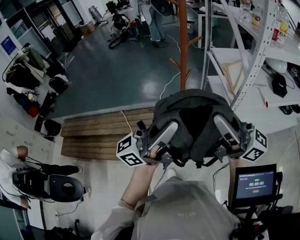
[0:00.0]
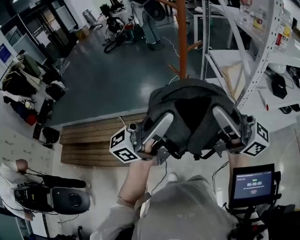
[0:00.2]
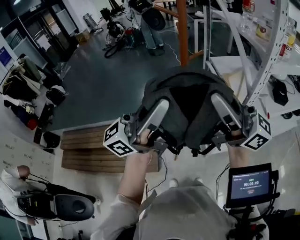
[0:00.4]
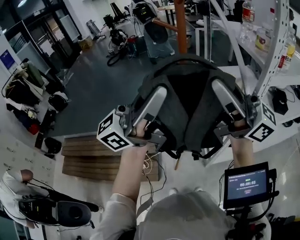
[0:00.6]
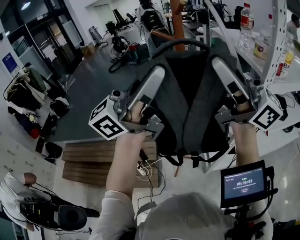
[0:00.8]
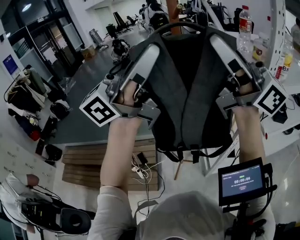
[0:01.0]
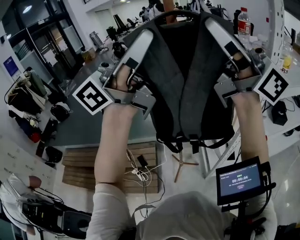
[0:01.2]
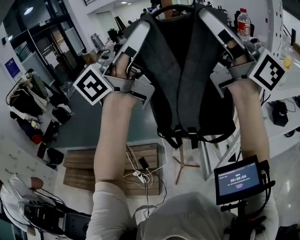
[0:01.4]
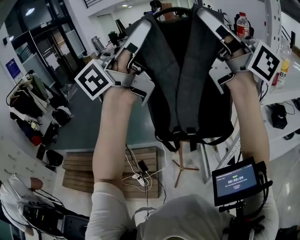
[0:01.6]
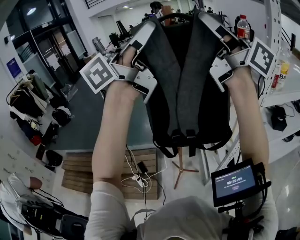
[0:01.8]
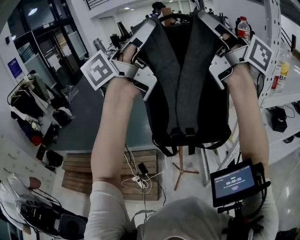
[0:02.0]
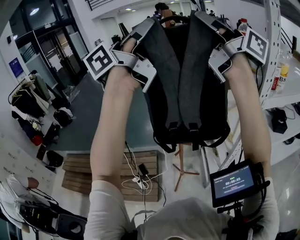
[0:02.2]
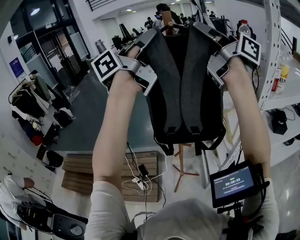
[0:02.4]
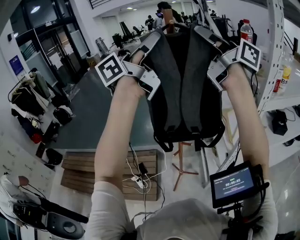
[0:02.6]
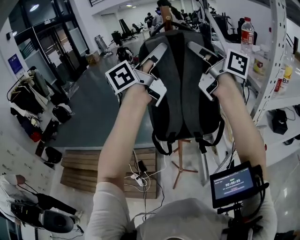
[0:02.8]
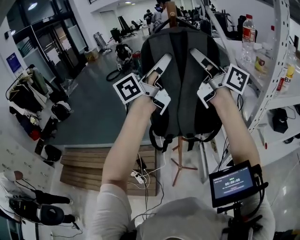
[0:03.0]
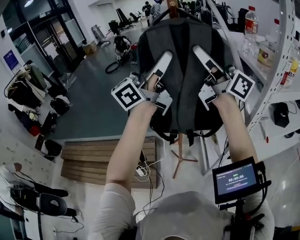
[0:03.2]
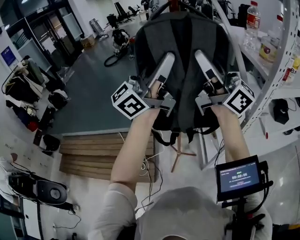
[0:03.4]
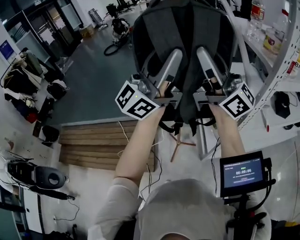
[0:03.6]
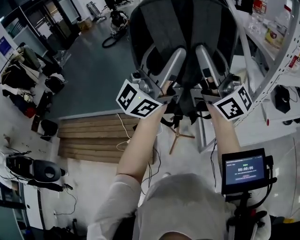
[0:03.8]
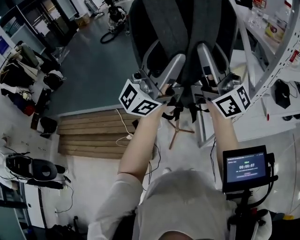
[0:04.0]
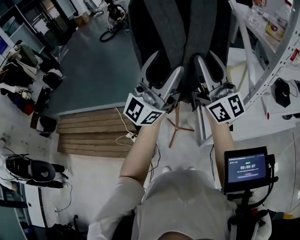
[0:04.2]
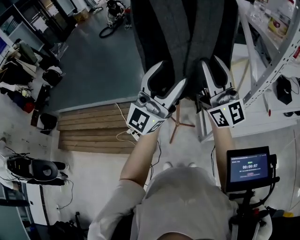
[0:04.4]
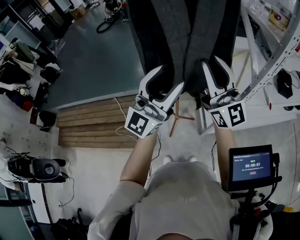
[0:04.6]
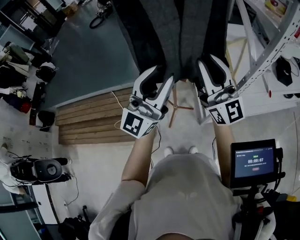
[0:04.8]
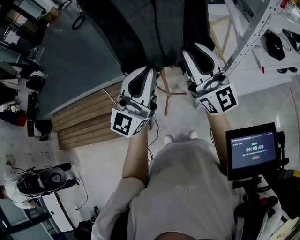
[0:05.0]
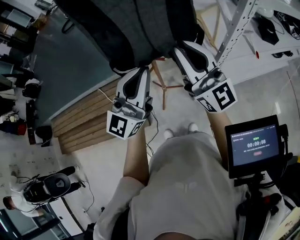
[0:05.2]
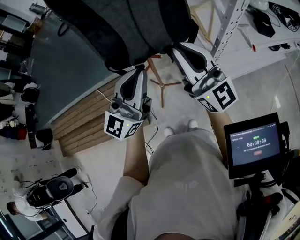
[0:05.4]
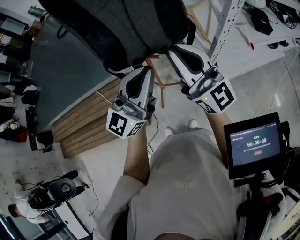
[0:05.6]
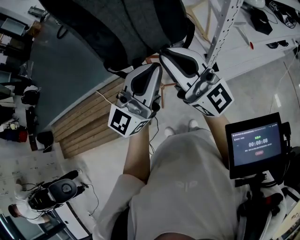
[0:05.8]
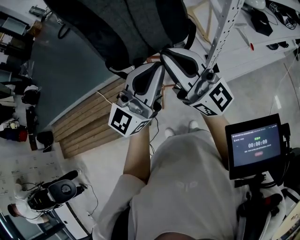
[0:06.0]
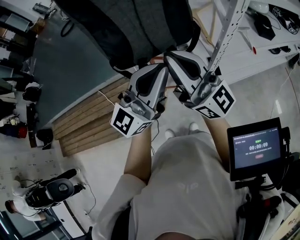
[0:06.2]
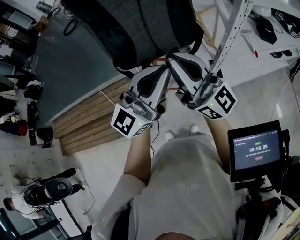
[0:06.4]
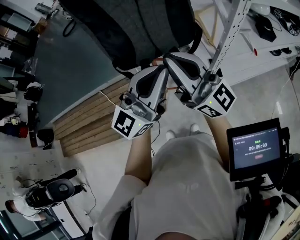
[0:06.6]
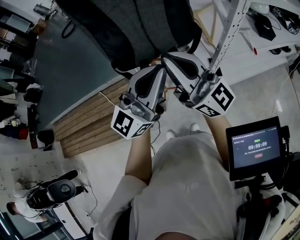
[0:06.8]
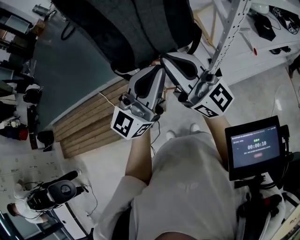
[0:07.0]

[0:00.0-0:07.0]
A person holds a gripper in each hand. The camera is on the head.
0:00.0 to 0:01.4: Both grippers travel together upward, roughly 30 cm. The right gripper swivels roughly 20 degrees.
0:01.4 to 0:02.8: The left gripper ends up roughly 15 cm from where it was, and swivels roughly 20 degrees. The right gripper moves some 20 cm, and swivels approximately 40 degrees.
0:02.8 to 0:04.2: Both grippers move downward and backward, some 20 cm. The left gripper turns by roughly 40 degrees, and opens its fingers. The right gripper rotates around the line of its fingers by approximately 40 degrees, counterclockwise from behind.
0:04.2 to 0:05.6: Both grippers move downward and backward, approximately 15 cm. The left gripper rotates about 20 degrees, and closes up.
0:05.6 to 0:07.0: The grippers stay close to where they were, moving slightly.

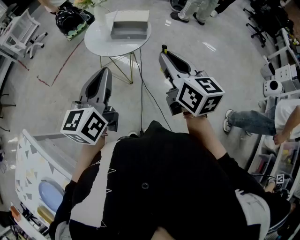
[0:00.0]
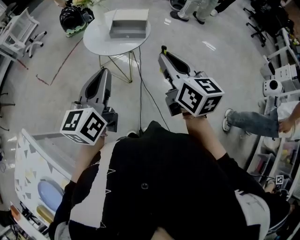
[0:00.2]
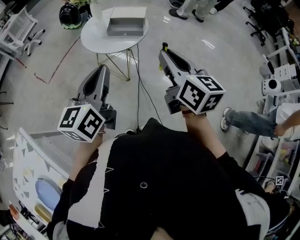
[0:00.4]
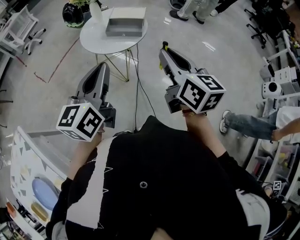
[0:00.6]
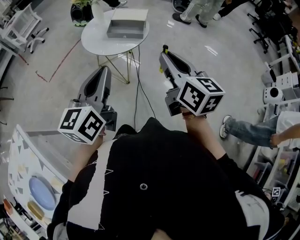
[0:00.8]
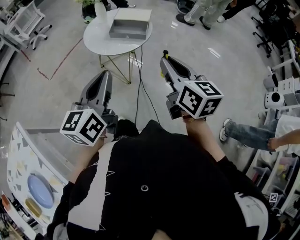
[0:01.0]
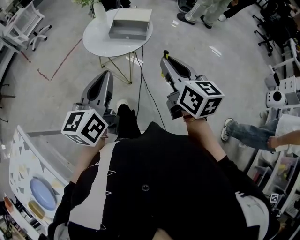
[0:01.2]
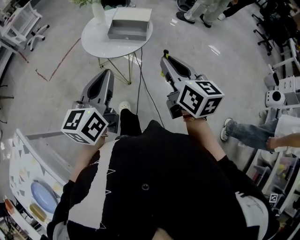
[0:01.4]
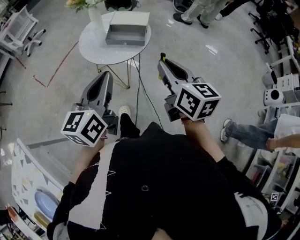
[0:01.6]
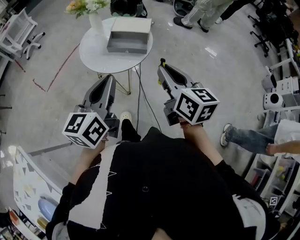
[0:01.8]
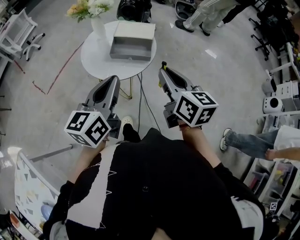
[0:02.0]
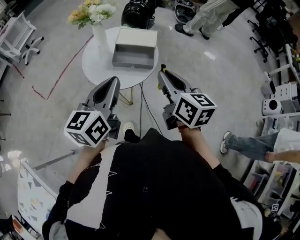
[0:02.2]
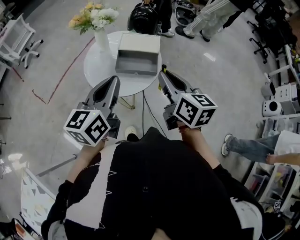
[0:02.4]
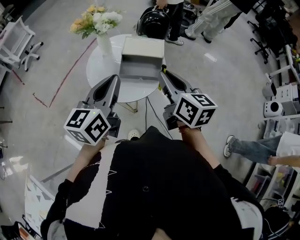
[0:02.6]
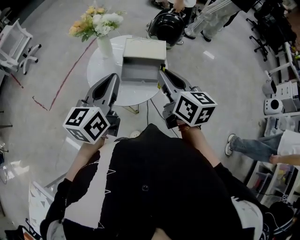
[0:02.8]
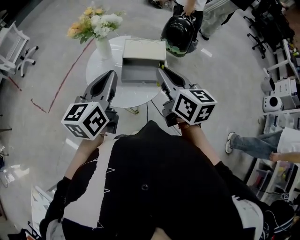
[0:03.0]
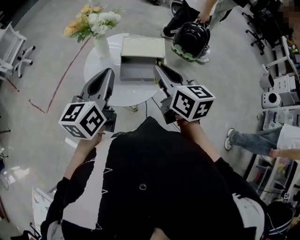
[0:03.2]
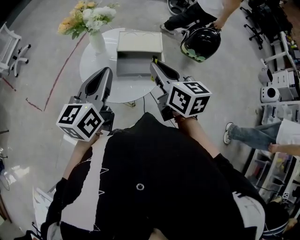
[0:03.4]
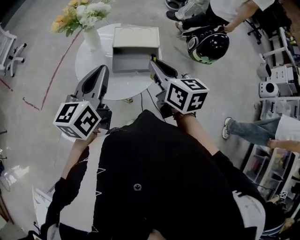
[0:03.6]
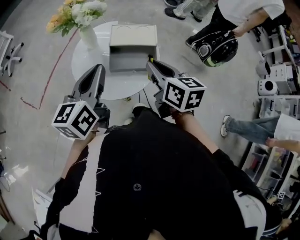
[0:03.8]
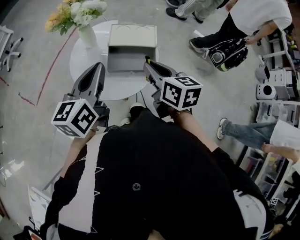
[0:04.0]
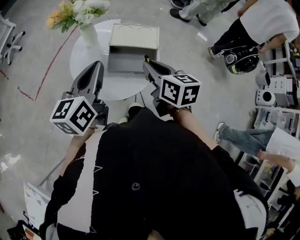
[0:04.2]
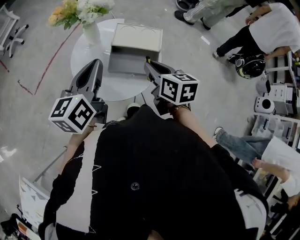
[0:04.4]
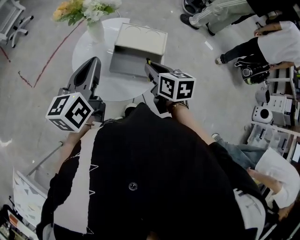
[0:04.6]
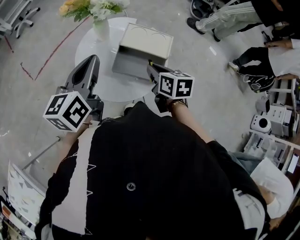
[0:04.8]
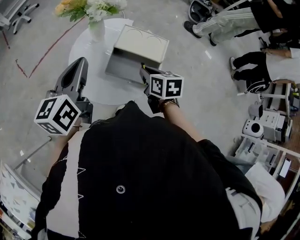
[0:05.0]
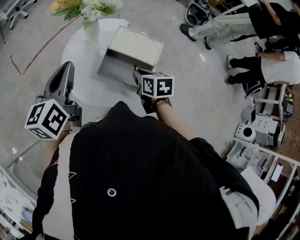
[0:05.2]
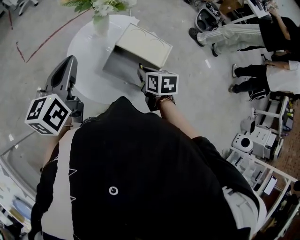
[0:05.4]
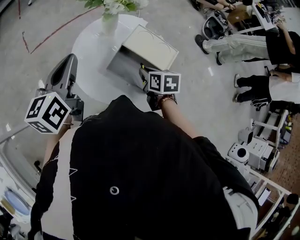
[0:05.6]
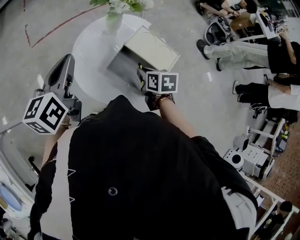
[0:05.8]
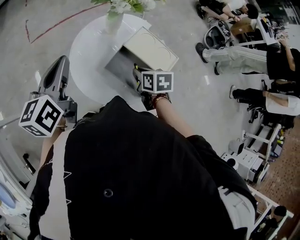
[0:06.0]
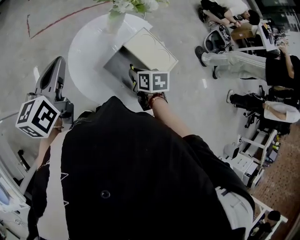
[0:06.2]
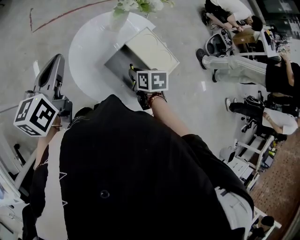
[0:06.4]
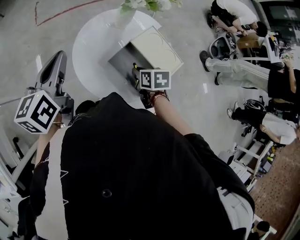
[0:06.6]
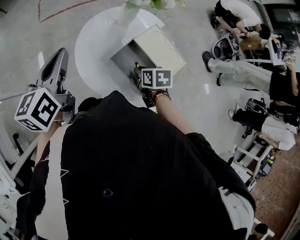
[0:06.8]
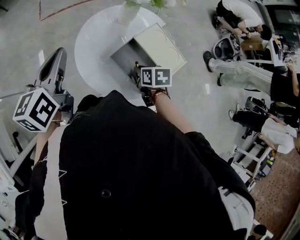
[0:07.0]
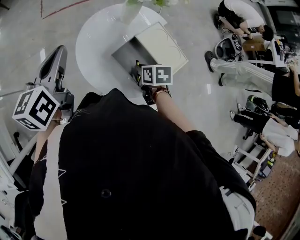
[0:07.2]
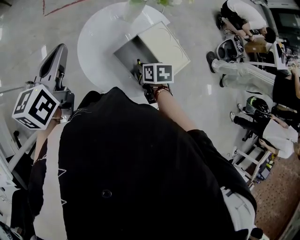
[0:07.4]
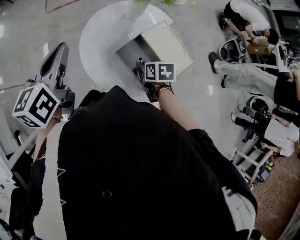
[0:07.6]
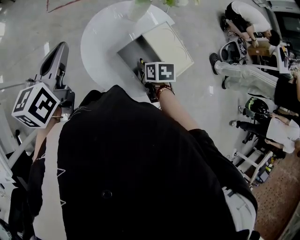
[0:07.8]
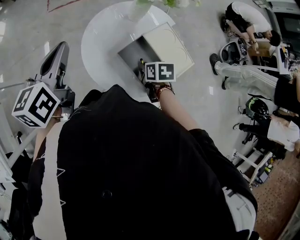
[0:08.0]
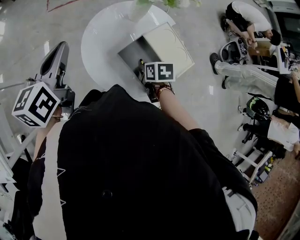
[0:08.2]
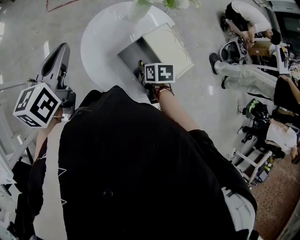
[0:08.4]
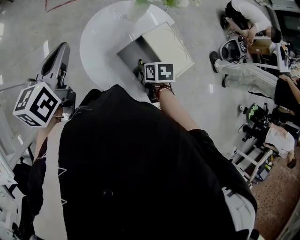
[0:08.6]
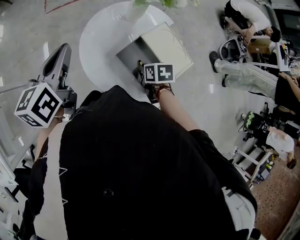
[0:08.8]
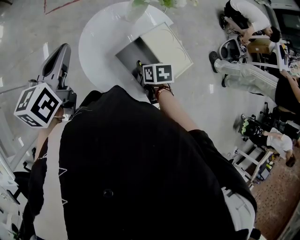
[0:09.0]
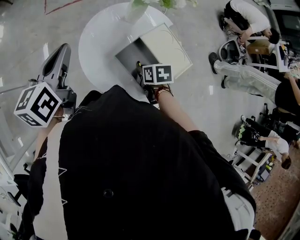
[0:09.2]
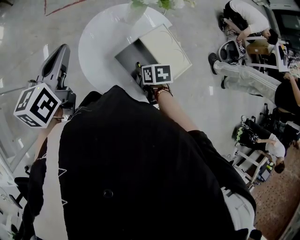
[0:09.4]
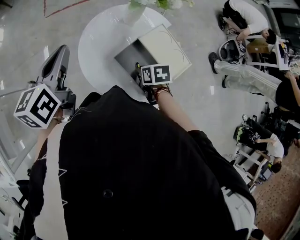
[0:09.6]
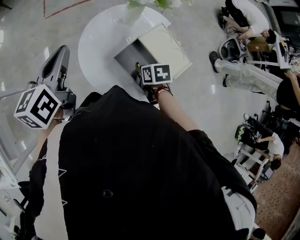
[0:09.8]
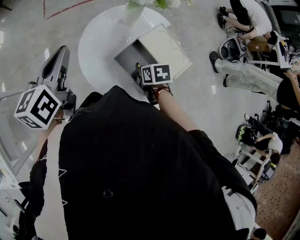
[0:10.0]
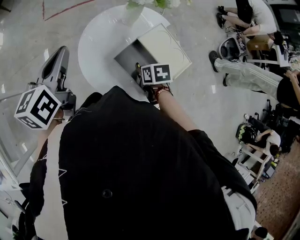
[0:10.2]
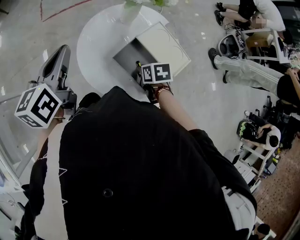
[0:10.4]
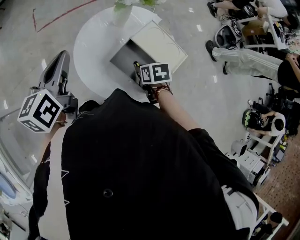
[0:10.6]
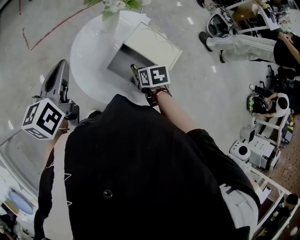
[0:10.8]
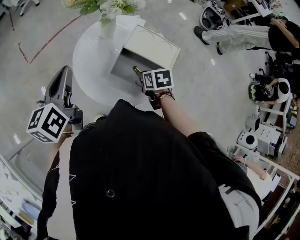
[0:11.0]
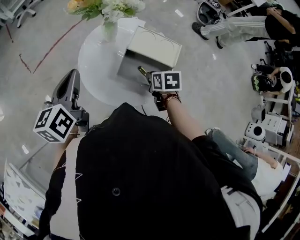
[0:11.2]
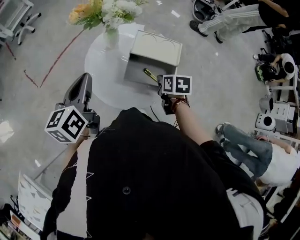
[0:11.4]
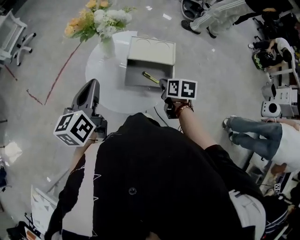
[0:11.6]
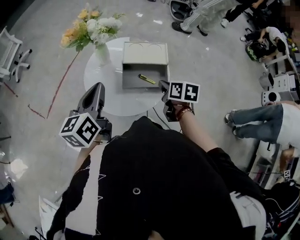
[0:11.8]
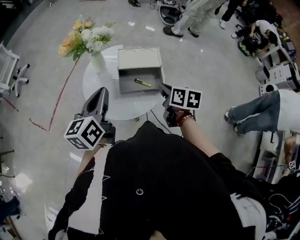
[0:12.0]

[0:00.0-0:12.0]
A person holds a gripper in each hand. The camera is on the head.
0:00.0 to 0:01.6: The right gripper moves forward and downward, about 10 cm, while the left gripper moves forward, some 10 cm.
0:01.6 to 0:03.0: The left gripper moves forward, approximately 25 cm. The right gripper moves forward and to the left, about 25 cm.
0:03.0 to 0:04.4: The left gripper changes place by approximately 5 cm. Meanwhile the right gripper heads downward and forward, covering some 15 cm.
0:04.4 to 0:06.0: The right gripper is displaced downward by some 15 cm, and changes its angle by roughly 40 degrees. The left gripper shifts by about 10 cm, and swivels about 30 degrees.
0:06.0 to 0:07.6: The right gripper changes place by some 5 cm.
0:07.6 to 0:10.4: There are only small adjustments of the grippers.
0:10.4 to 0:12.0: The right gripper is displaced upward by approximately 15 cm, and changes its angle by approximately 70 degrees, while the left gripper ends up approximately 10 cm from where it was, and swivels some 50 degrees.

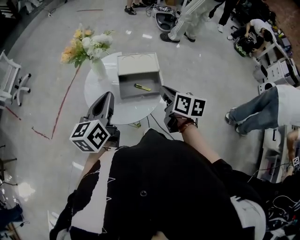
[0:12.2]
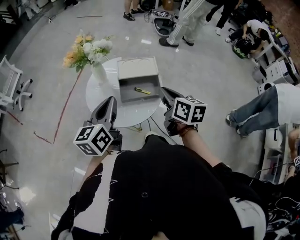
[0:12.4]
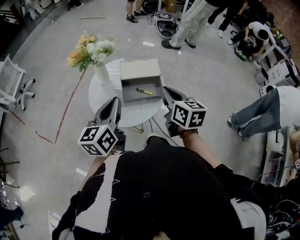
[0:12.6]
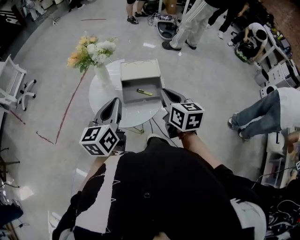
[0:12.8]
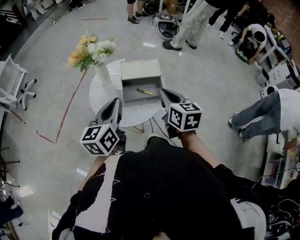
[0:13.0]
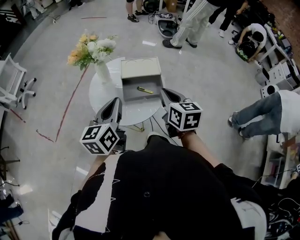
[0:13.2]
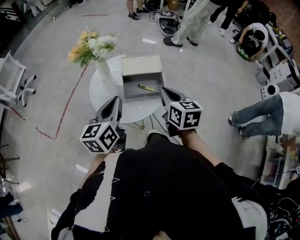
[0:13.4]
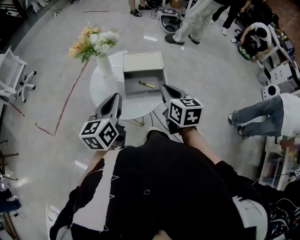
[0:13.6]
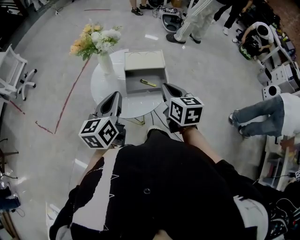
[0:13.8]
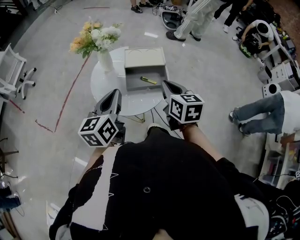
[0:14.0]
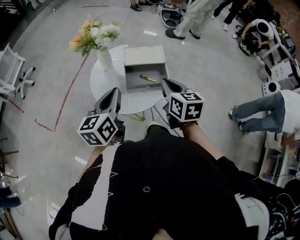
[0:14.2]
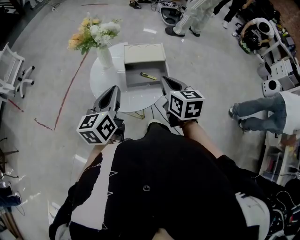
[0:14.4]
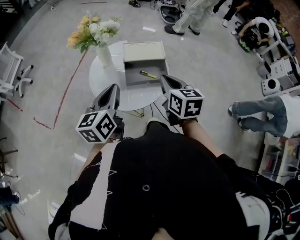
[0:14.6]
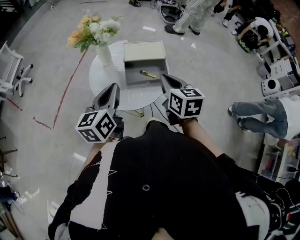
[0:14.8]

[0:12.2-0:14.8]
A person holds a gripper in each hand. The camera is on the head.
0:12.2 to 0:13.4: The right gripper swivels some 20 degrees.
0:13.4 to 0:14.8: The grippers make only small movements.

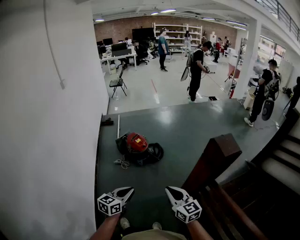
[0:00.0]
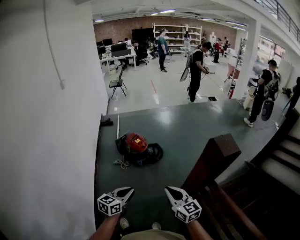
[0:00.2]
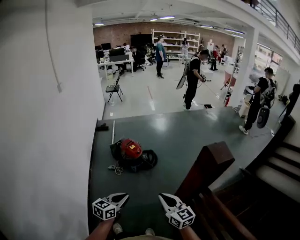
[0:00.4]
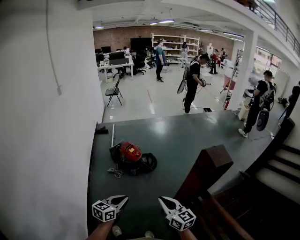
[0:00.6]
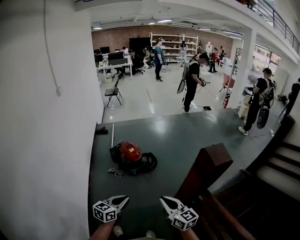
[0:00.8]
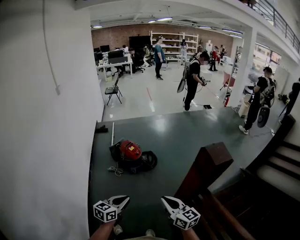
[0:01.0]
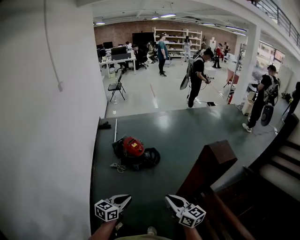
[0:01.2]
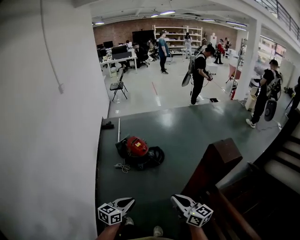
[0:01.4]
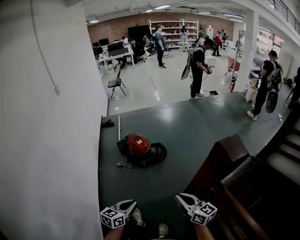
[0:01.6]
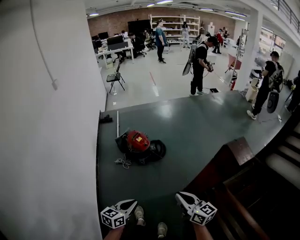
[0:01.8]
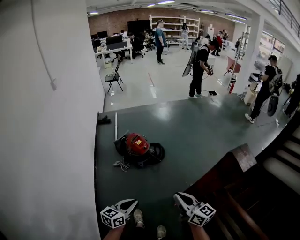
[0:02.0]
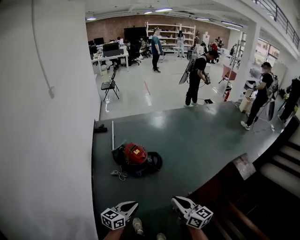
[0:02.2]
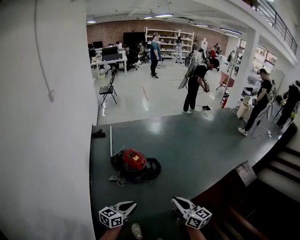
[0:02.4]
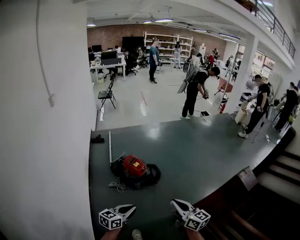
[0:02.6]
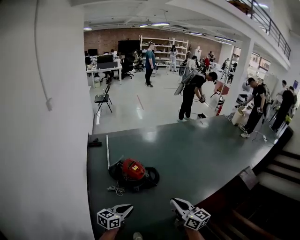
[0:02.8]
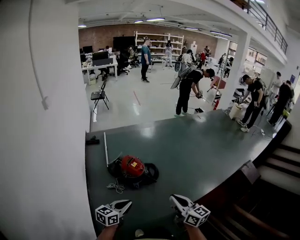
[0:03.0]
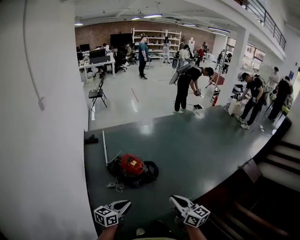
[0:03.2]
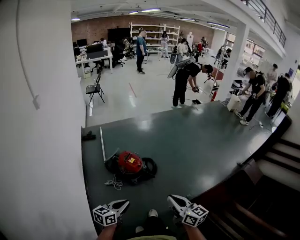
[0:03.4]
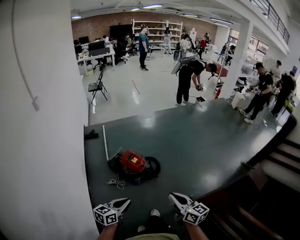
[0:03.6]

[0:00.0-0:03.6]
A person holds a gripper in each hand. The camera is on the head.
0:00.0 to 0:01.8: The left gripper moves approximately 5 cm; the right gripper shifts some 5 cm forward.
0:01.8 to 0:03.6: Both grippers move forward and to the left, roughly 30 cm.
